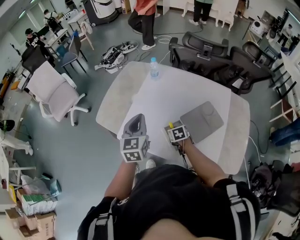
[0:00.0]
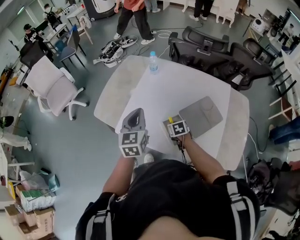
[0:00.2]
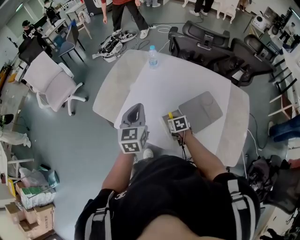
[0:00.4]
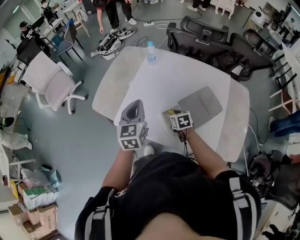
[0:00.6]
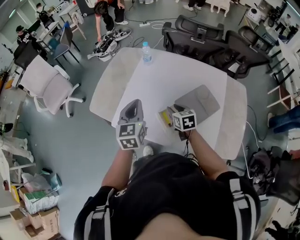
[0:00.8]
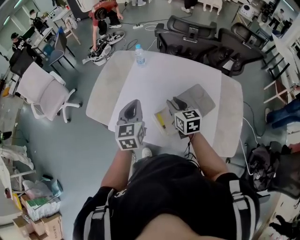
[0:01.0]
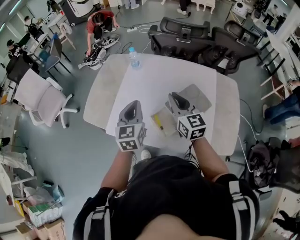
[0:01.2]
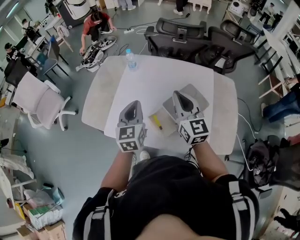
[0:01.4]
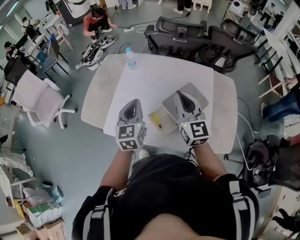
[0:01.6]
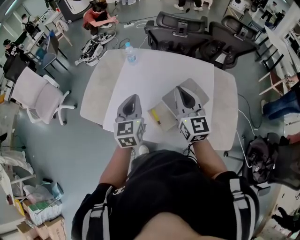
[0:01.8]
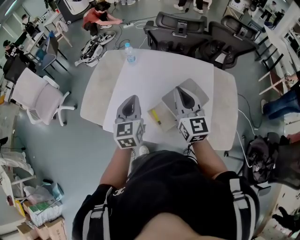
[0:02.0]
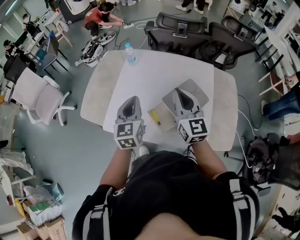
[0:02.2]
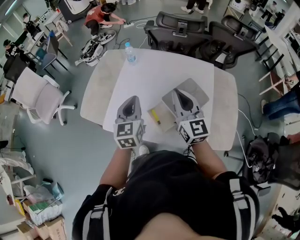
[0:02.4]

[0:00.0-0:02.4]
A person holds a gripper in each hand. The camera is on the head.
0:00.0 to 0:01.2: The left gripper is displaced to the right by roughly 5 cm. Meanwhile the right gripper goes roughly 30 cm upward, and tips its fingers upward by some 50 degrees.
0:01.2 to 0:02.4: The right gripper ends up roughly 5 cm from where it was.

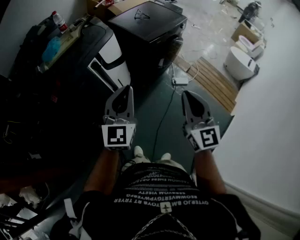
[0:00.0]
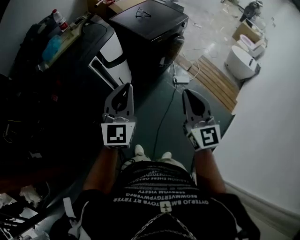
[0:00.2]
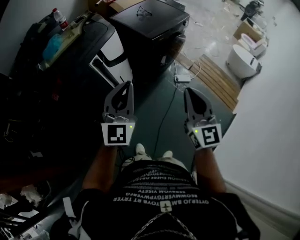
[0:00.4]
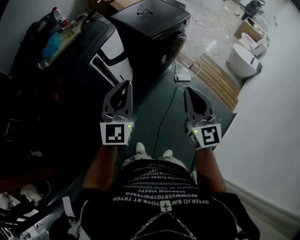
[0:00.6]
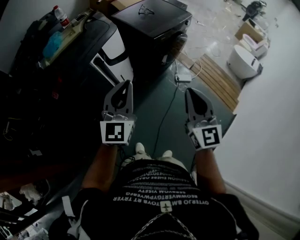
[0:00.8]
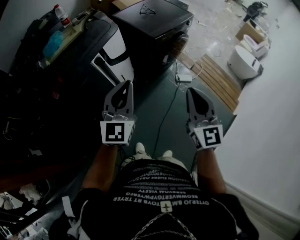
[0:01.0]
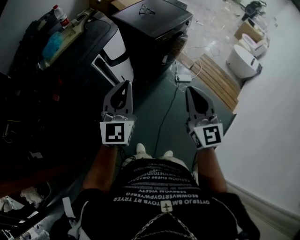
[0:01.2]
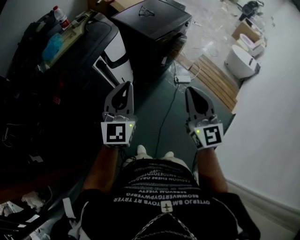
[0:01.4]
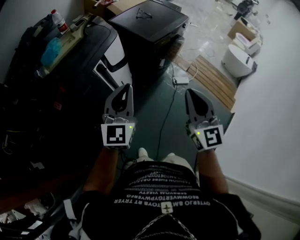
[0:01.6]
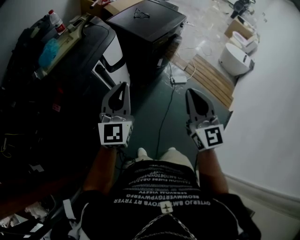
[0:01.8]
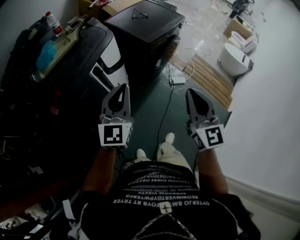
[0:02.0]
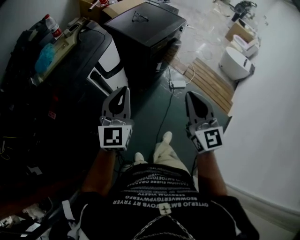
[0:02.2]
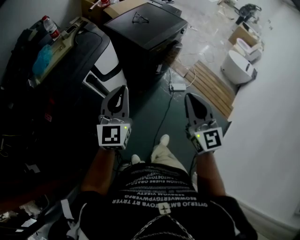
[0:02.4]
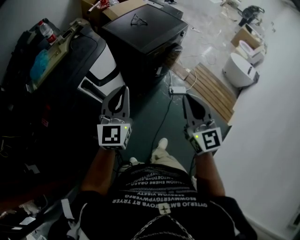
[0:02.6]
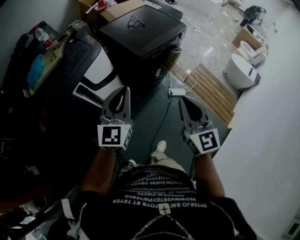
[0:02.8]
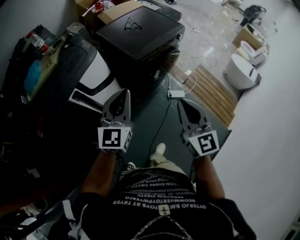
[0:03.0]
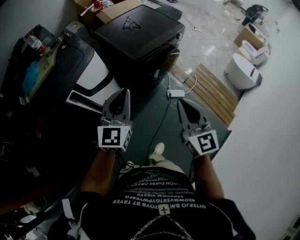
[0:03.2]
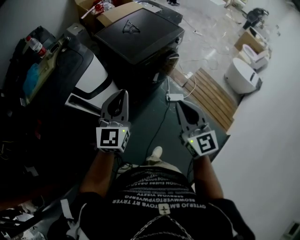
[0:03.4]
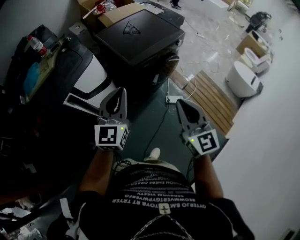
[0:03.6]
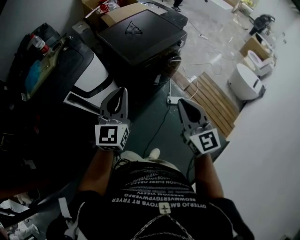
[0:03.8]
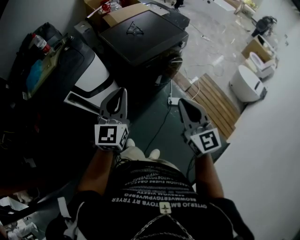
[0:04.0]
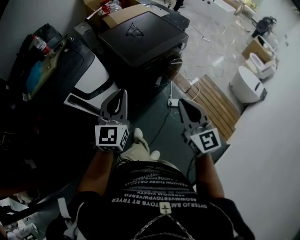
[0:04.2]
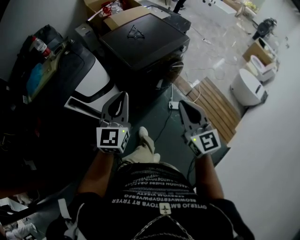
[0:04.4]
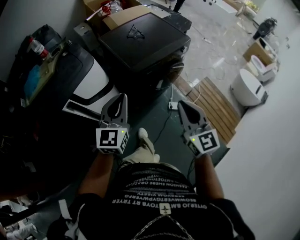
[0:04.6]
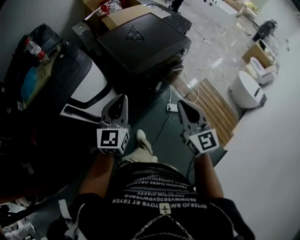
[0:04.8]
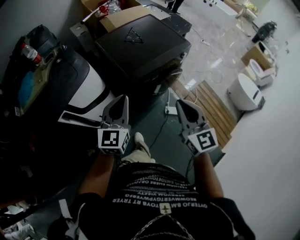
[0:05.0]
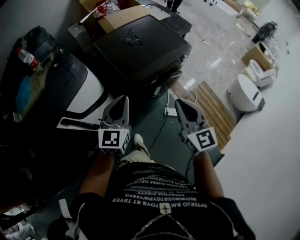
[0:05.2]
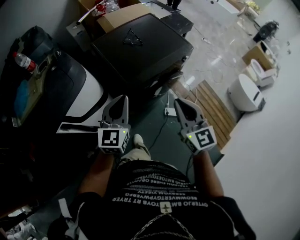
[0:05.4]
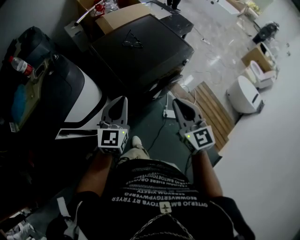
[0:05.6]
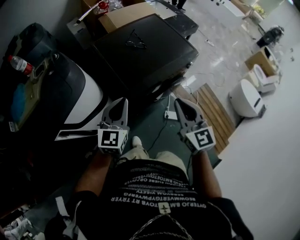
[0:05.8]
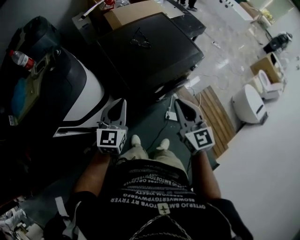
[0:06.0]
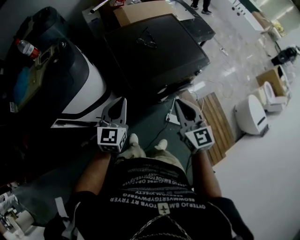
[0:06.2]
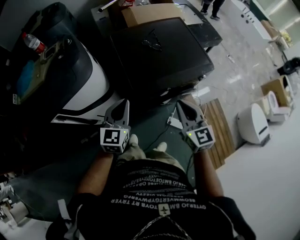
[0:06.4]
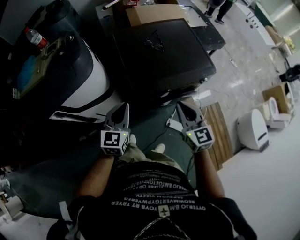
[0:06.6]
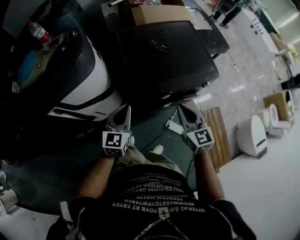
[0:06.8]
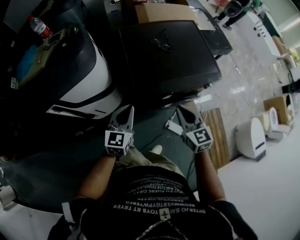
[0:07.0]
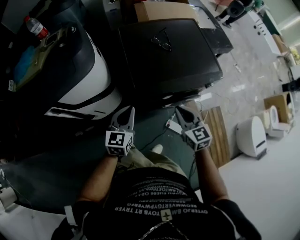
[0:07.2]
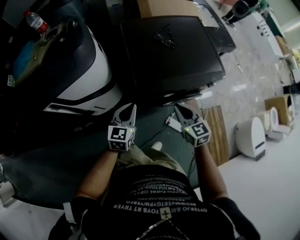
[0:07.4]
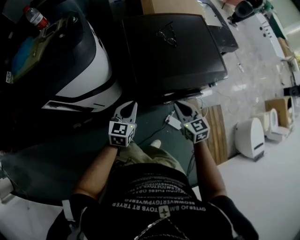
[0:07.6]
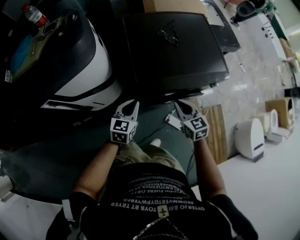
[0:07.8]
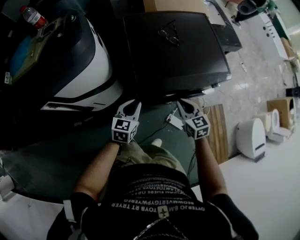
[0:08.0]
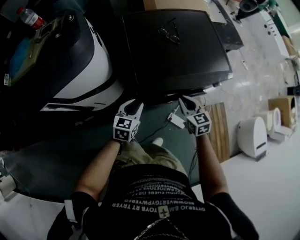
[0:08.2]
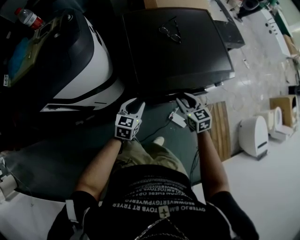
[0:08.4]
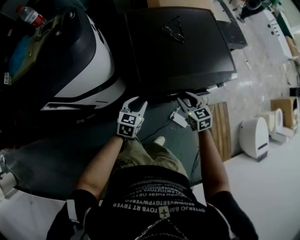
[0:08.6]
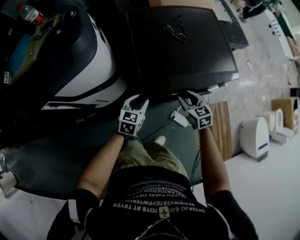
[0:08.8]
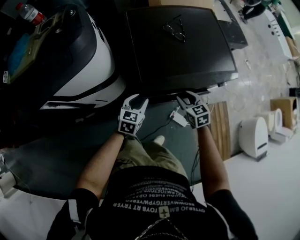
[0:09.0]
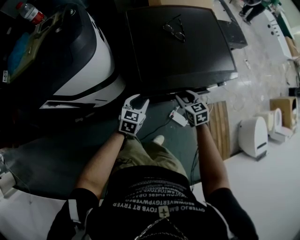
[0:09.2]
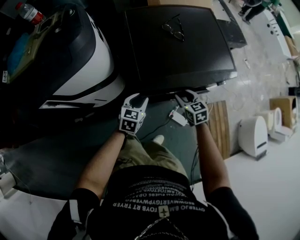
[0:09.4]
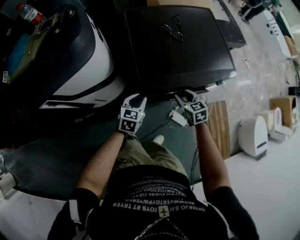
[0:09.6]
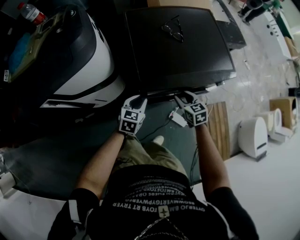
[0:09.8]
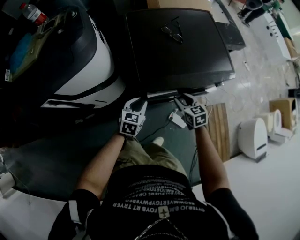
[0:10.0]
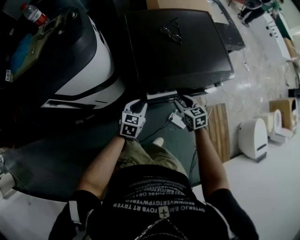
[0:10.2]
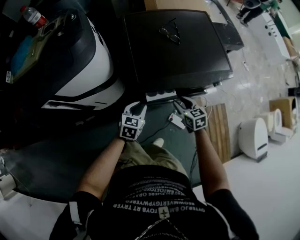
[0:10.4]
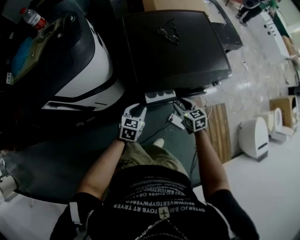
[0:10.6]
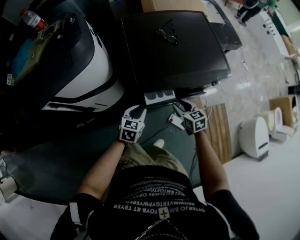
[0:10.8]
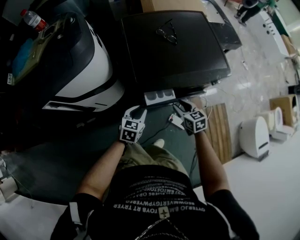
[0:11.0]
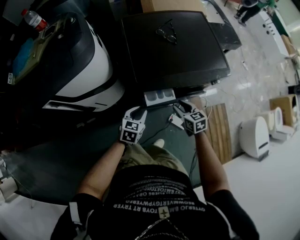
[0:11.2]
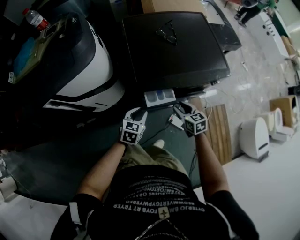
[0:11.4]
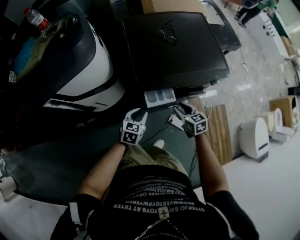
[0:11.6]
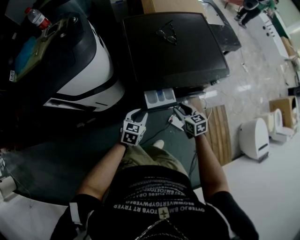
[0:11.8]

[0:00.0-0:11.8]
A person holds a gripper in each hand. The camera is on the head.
0:00.0 to 0:01.4: The left gripper is displaced to the left by about 5 cm. Meanwhile the right gripper ends up some 5 cm from where it was.
0:01.4 to 0:03.0: Both grippers move forward and to the right, approximately 20 cm.
0:03.0 to 0:04.4: The grippers both shift to the right and forward by about 10 cm.
0:04.4 to 0:06.0: The left gripper is displaced forward and downward by some 30 cm, while the right gripper shifts some 30 cm forward.
0:06.0 to 0:07.4: The two grippers go some 15 cm downward. The right gripper changes its angle by roughly 30 degrees.
0:07.4 to 0:08.8: The right gripper is displaced downward and forward by approximately 15 cm, and opens up, while the left gripper goes roughly 10 cm downward, and opens.
0:08.8 to 0:10.4: The grippers stay close to where they were, moving slightly.
0:10.4 to 0:11.8: The right gripper changes place by approximately 5 cm; the left gripper travels backward by roughly 5 cm.

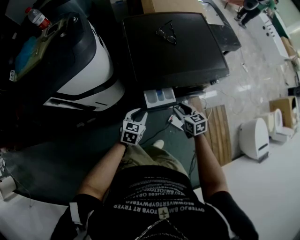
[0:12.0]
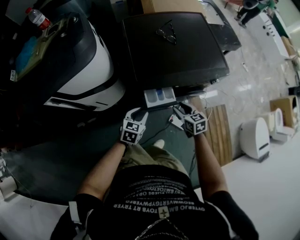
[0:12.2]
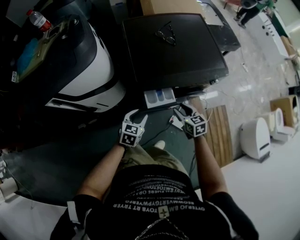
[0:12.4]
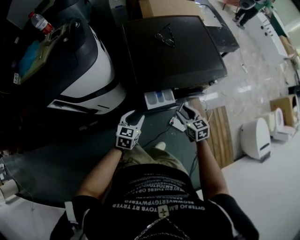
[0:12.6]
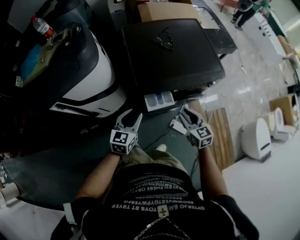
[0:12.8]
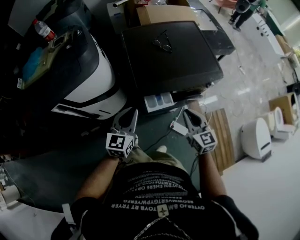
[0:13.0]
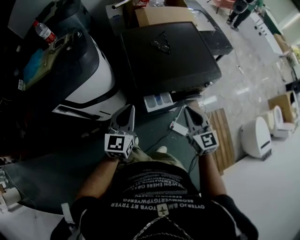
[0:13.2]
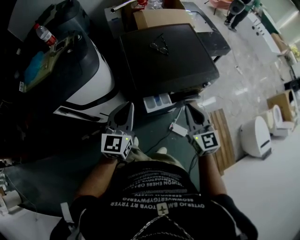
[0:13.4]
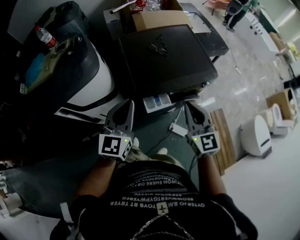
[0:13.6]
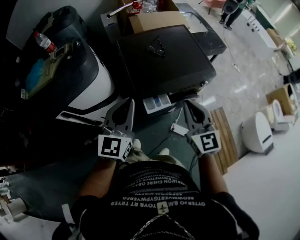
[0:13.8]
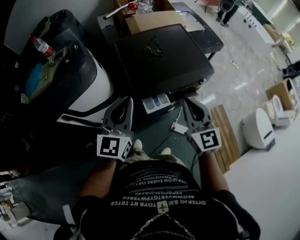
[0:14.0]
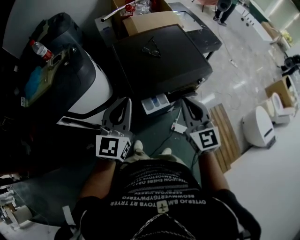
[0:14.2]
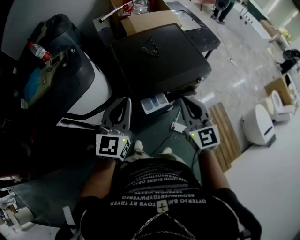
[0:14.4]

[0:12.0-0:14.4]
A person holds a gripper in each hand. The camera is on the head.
0:12.0 to 0:13.2: The grippers both shift upward by about 25 cm. The right gripper rotates roughly 30 degrees, and closes its fingers. Meanwhile the left gripper tips its fingers upward by roughly 30 degrees.
0:13.2 to 0:14.4: The grippers both shift upward by some 10 cm.

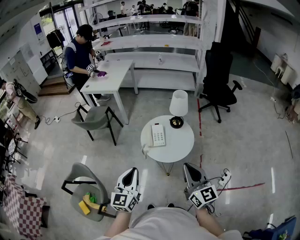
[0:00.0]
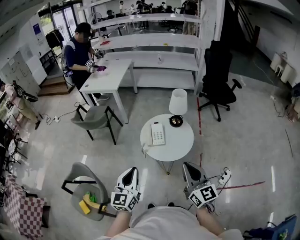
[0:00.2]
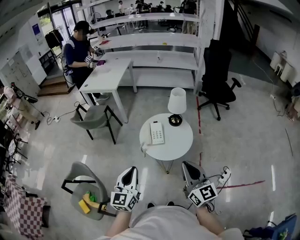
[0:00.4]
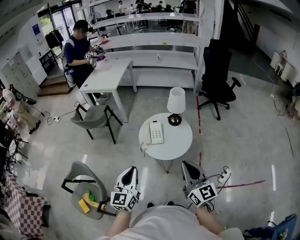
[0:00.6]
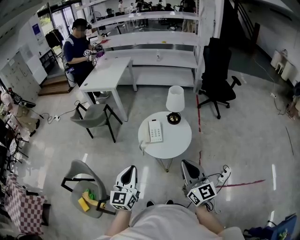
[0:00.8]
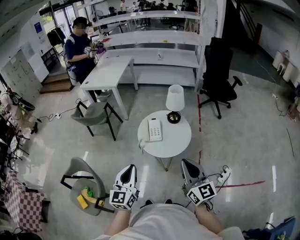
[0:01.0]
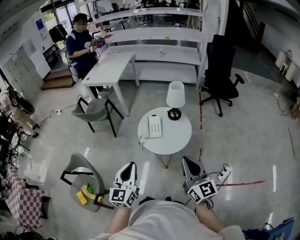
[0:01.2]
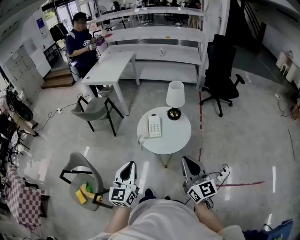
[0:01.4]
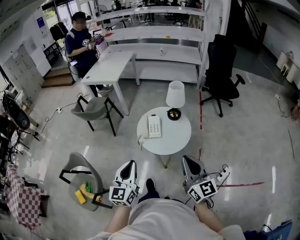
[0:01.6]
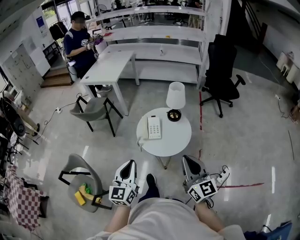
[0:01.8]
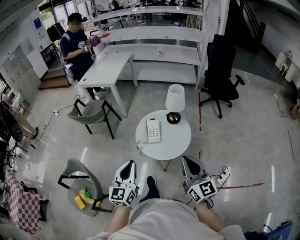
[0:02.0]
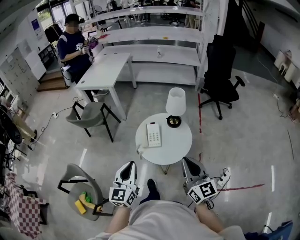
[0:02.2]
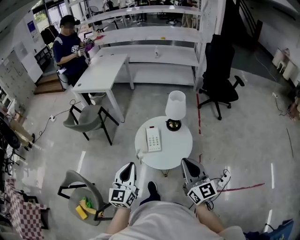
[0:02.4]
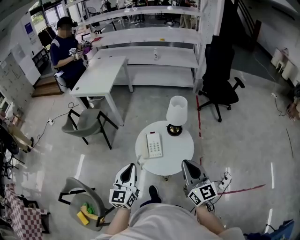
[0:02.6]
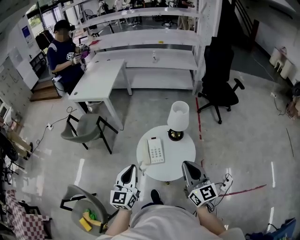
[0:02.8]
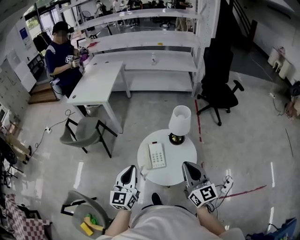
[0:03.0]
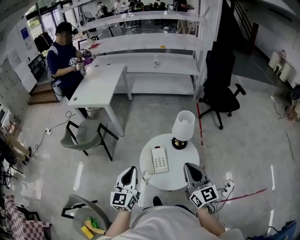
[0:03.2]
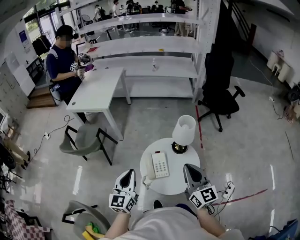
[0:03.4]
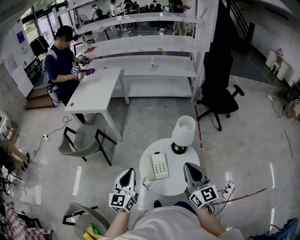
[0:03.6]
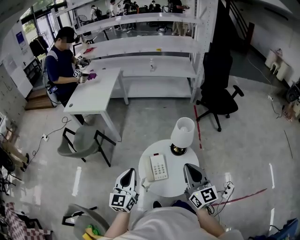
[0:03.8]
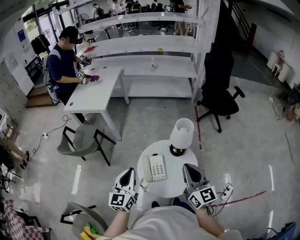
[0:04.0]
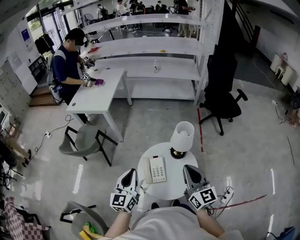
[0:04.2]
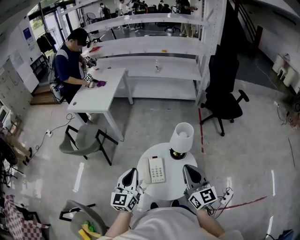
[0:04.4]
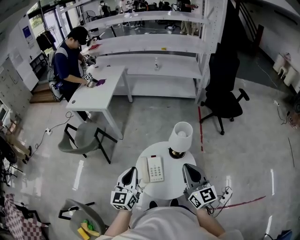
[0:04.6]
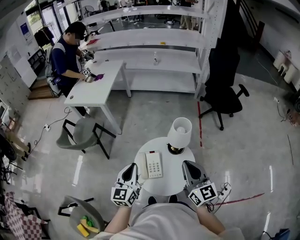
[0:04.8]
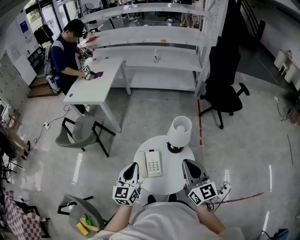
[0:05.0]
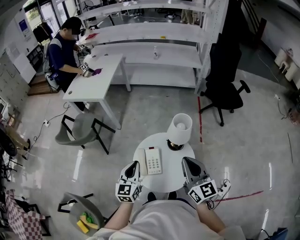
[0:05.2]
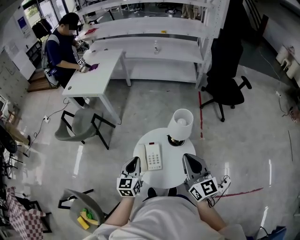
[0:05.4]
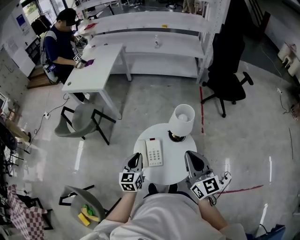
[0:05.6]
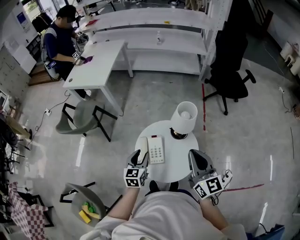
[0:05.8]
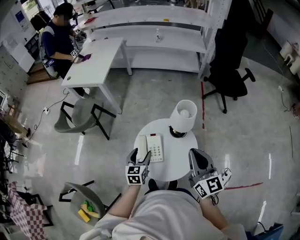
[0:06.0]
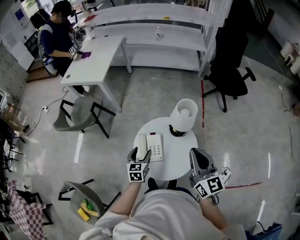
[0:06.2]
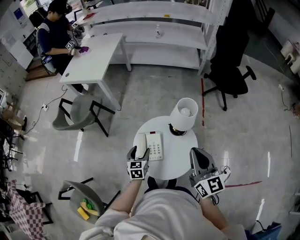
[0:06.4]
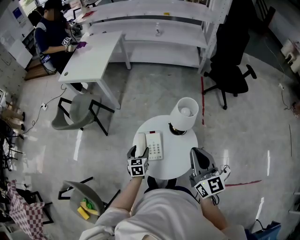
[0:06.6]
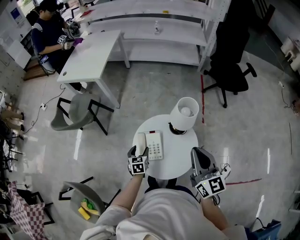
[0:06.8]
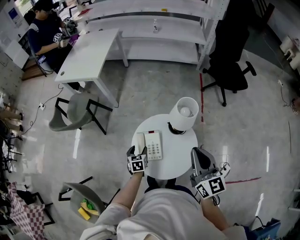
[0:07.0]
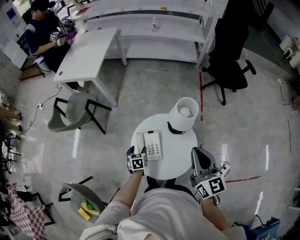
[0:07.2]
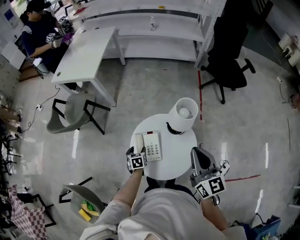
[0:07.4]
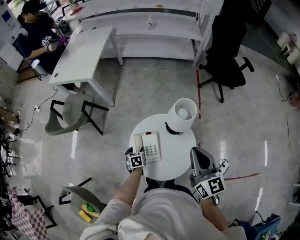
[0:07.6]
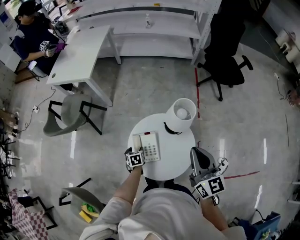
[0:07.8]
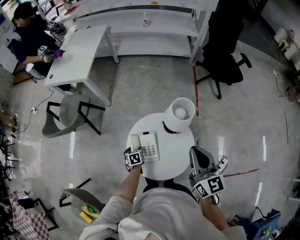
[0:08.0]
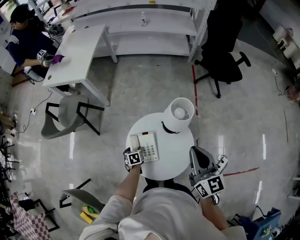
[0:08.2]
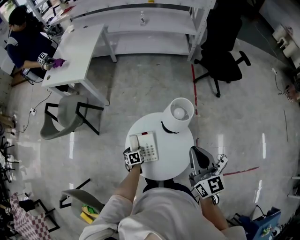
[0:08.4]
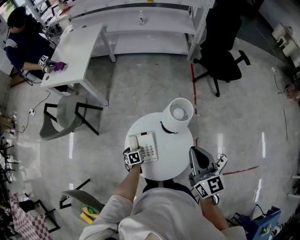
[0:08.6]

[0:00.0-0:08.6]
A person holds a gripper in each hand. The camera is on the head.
0:00.0 to 0:01.4: There are only small adjustments of the grippers.
0:01.4 to 0:02.8: The grippers both shift forward by some 20 cm.
0:02.8 to 0:04.4: The two grippers go about 10 cm forward.
0:04.4 to 0:05.8: The left gripper shifts approximately 15 cm downward, changes its angle by roughly 20 degrees, and opens up.
0:05.8 to 0:07.2: The left gripper goes approximately 20 cm downward, turns by roughly 30 degrees, and opens its fingers.
0:07.2 to 0:08.6: The left gripper is displaced downward by approximately 10 cm.
